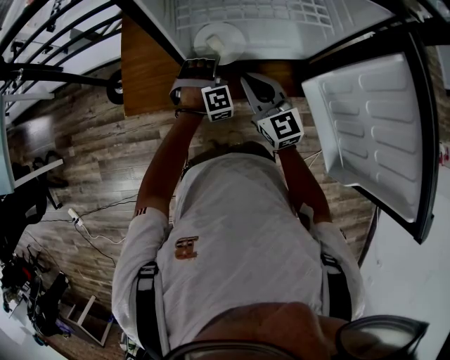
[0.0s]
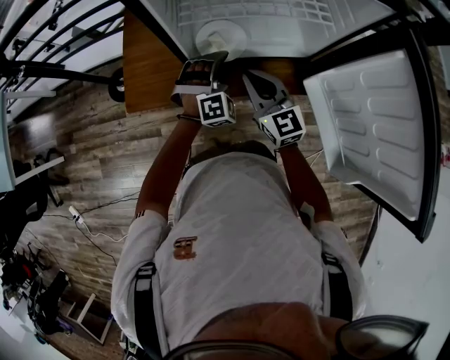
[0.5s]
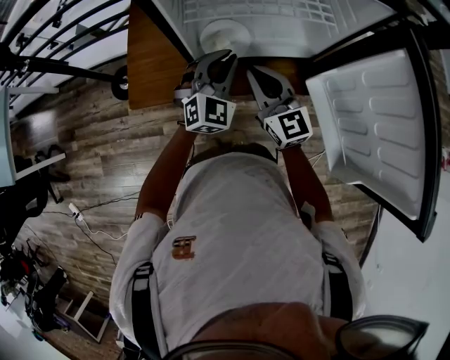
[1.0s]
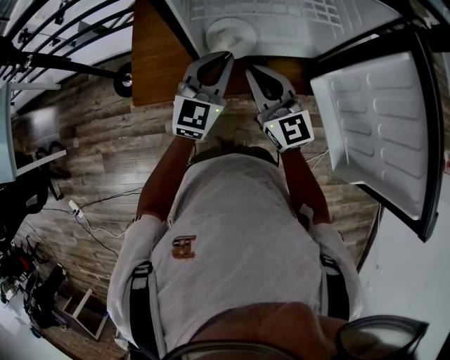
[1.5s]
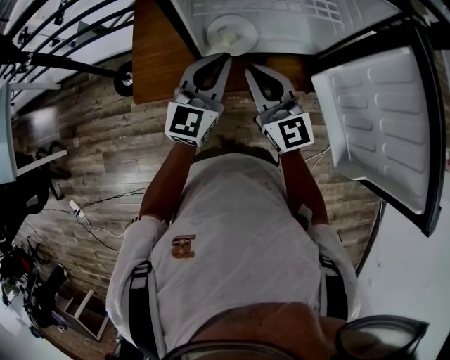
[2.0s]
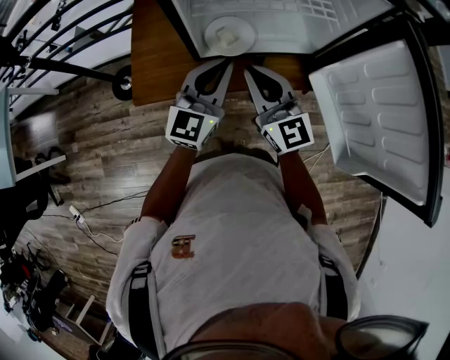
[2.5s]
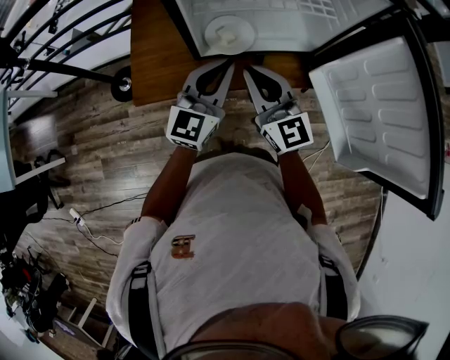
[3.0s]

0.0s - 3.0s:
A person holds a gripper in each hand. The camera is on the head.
0.0s - 1.5s: The right gripper goes about 5 cm upward.

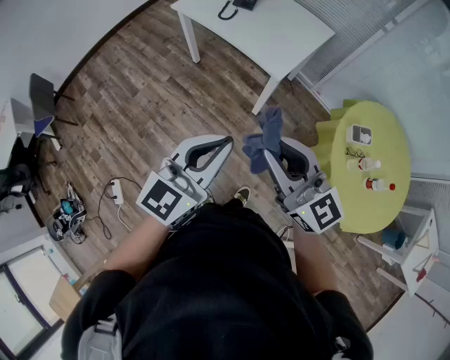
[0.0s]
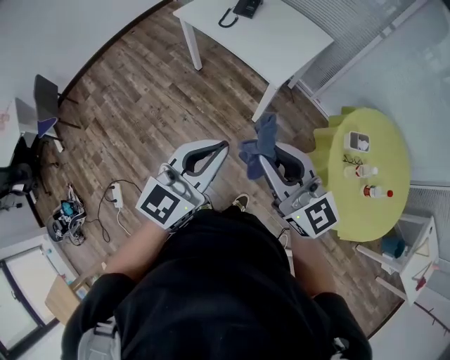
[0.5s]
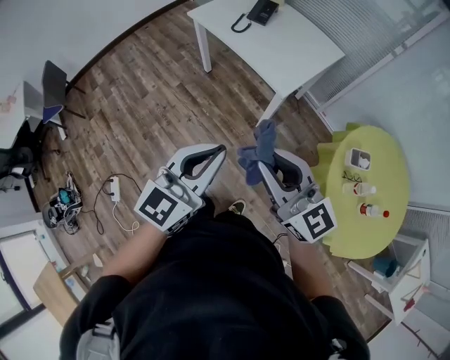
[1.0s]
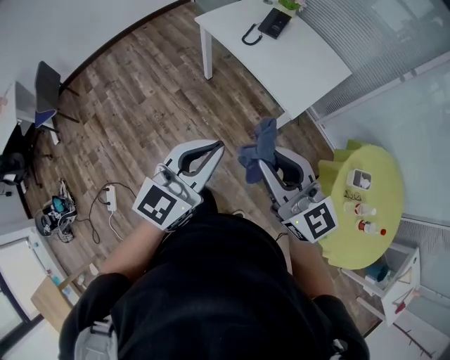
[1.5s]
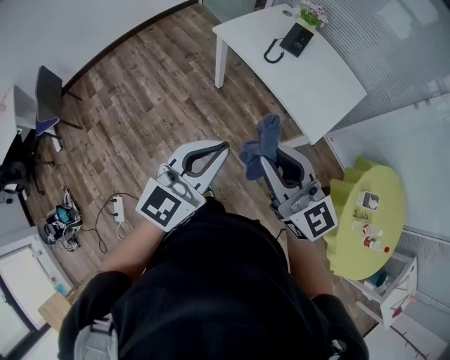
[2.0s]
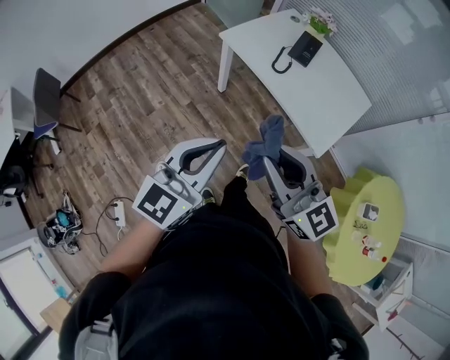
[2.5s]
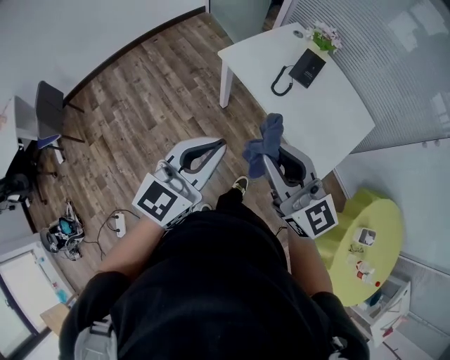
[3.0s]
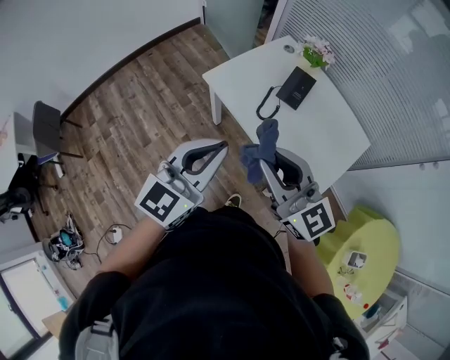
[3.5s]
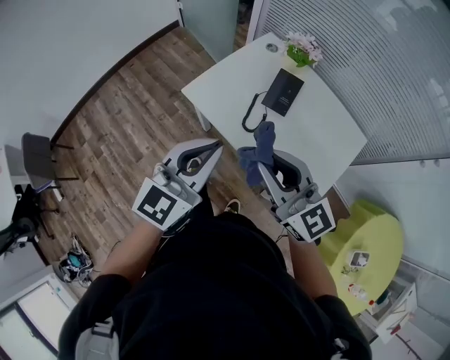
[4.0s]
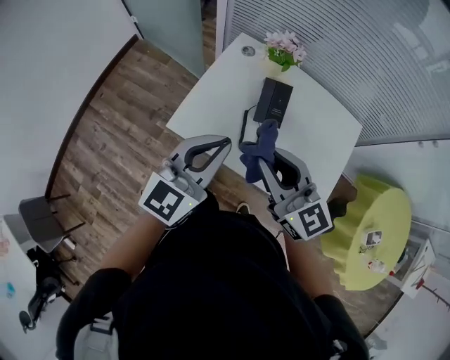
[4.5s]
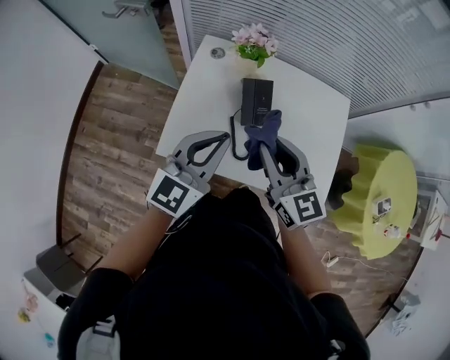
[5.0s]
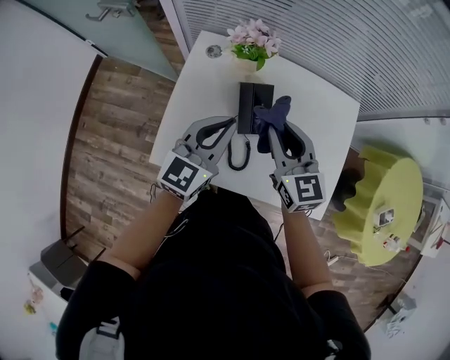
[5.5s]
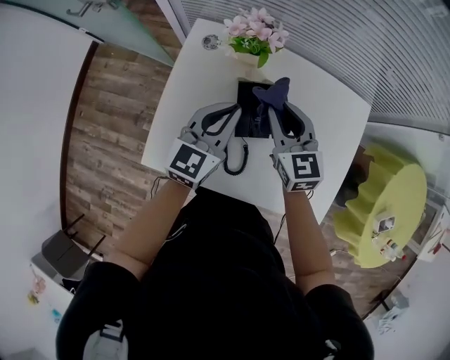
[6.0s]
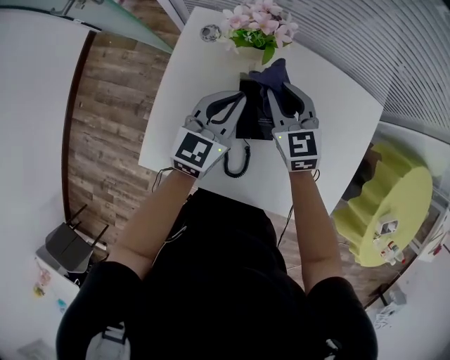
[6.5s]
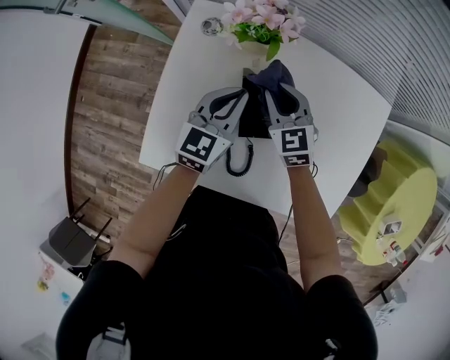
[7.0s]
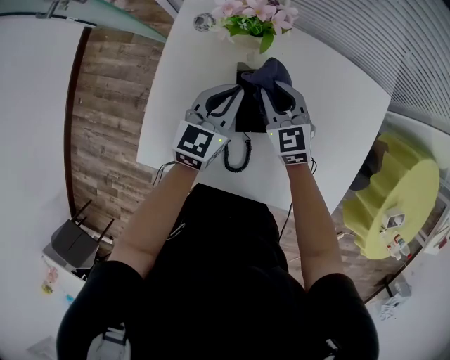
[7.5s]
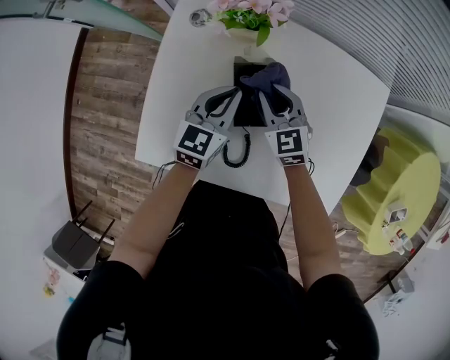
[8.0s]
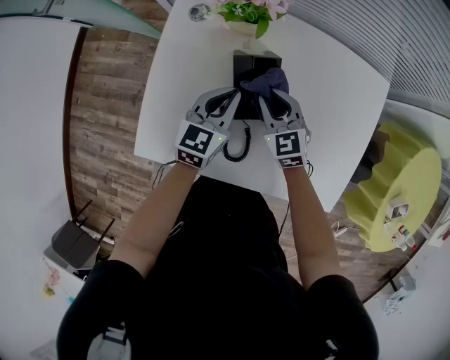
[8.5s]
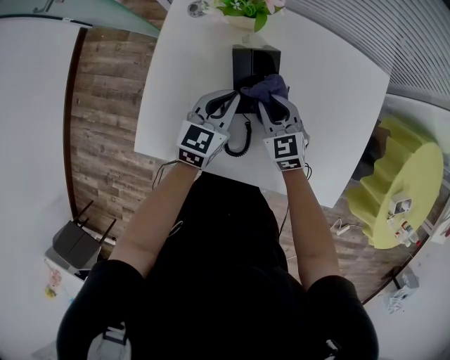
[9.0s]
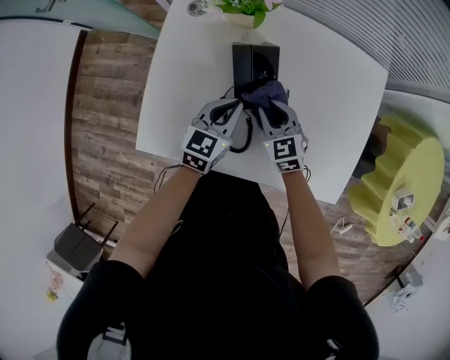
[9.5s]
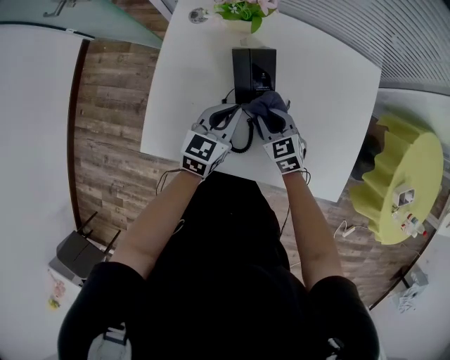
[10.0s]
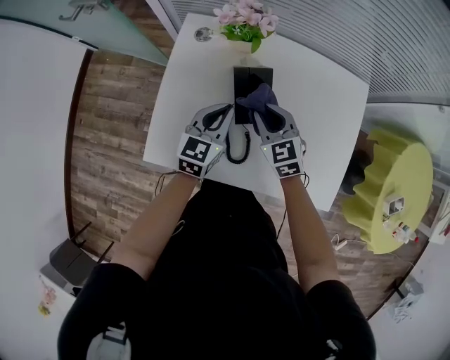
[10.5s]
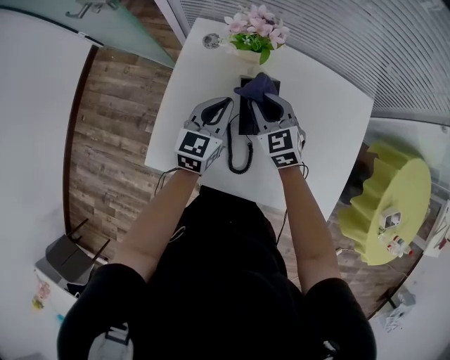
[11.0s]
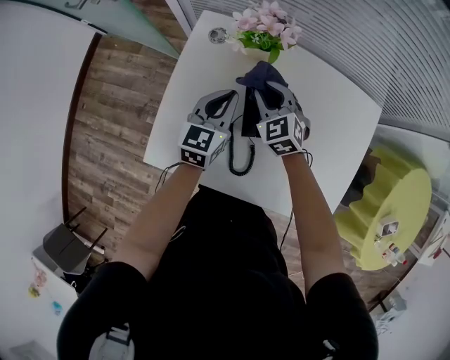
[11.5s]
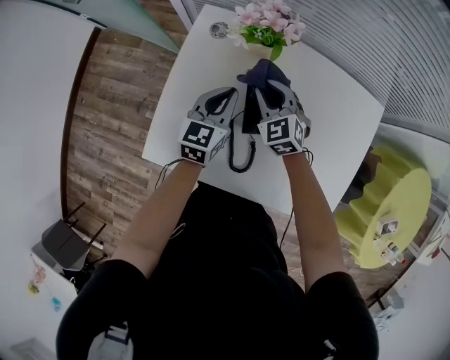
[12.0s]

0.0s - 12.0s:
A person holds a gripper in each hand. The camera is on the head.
0.0s - 2.0s: Both grippers move forward and to the left, about 25 cm.
2.0s - 4.0s: Both grippers move forward, approximately 40 cm.
4.0s - 6.0s: The right gripper ends up some 40 cm from where it was, and swivels approximately 50 degrees. The left gripper changes place by approximately 40 cm, and turns by roughly 30 degrees.
6.0s - 8.0s: Both grippers move downward, some 15 cm.
8.0s - 10.0s: The left gripper shifts roughly 10 cm backward. The right gripper moves backward and downward, some 15 cm.
10.0s - 12.0s: The right gripper shifts roughly 15 cm forward, upward and to the left, and turns by roughly 20 degrees. Meanwhile the left gripper goes some 10 cm forward and to the left.

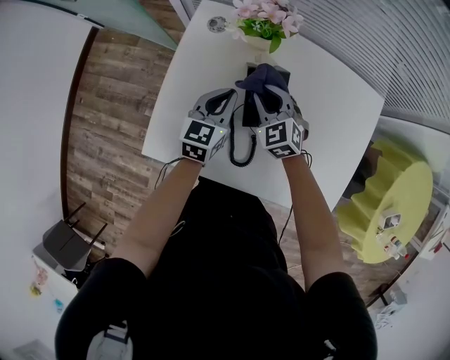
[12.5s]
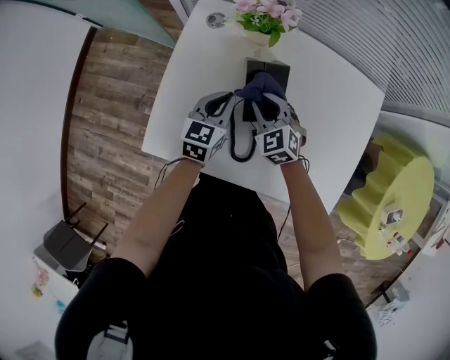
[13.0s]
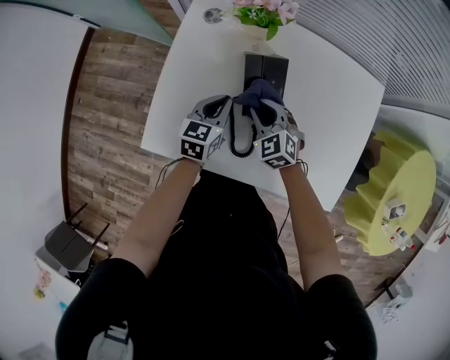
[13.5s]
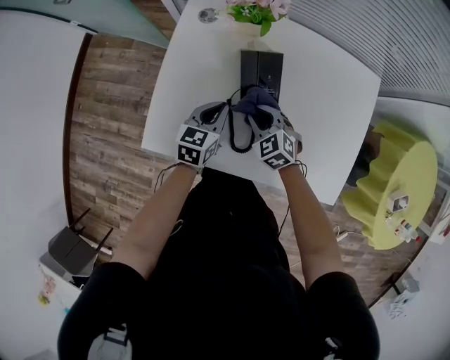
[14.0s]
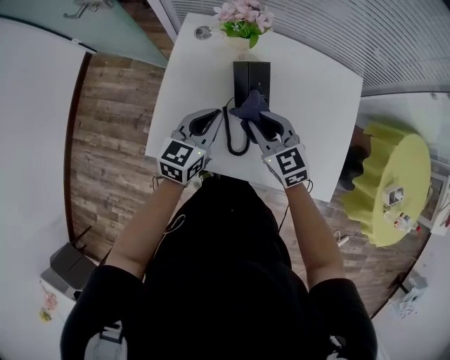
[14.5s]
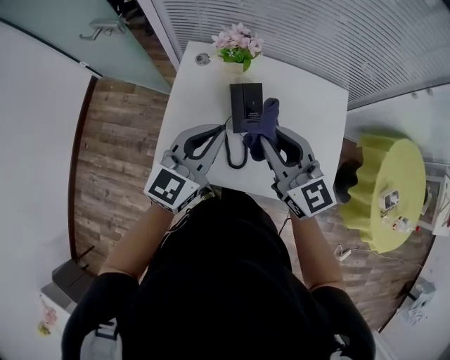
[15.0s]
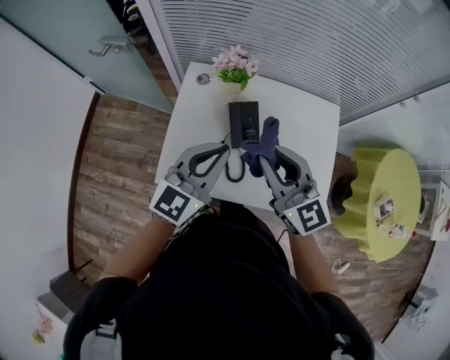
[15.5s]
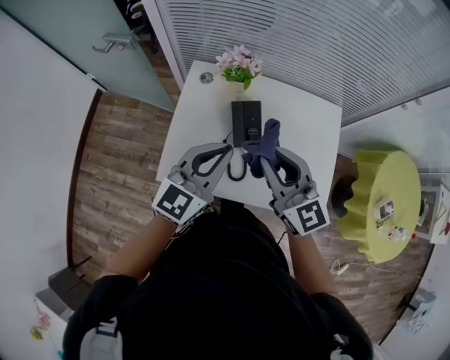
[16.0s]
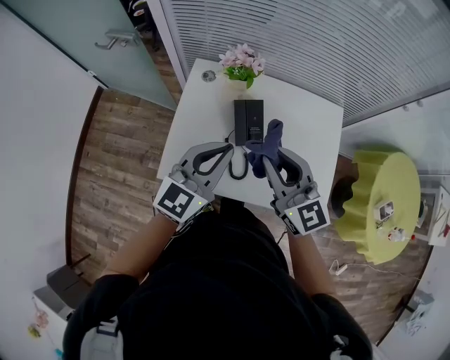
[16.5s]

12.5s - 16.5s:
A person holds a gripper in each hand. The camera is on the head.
12.5s - 14.5s: The grippers both shift backward and upward by about 15 cm. The right gripper changes its angle by about 20 degrees.
14.5s - 16.5s: Both grippers move upward, approximately 20 cm. The left gripper turns by some 20 degrees. The right gripper turns by approximately 20 degrees.

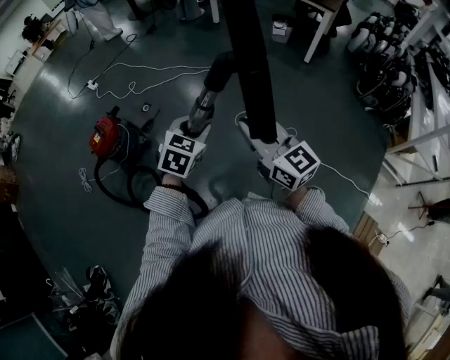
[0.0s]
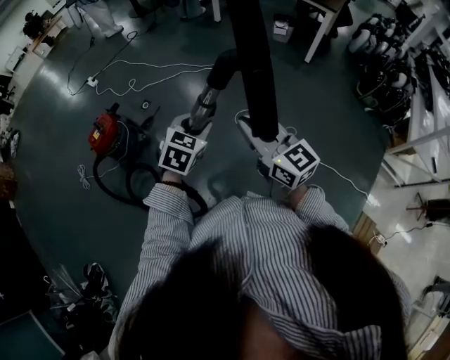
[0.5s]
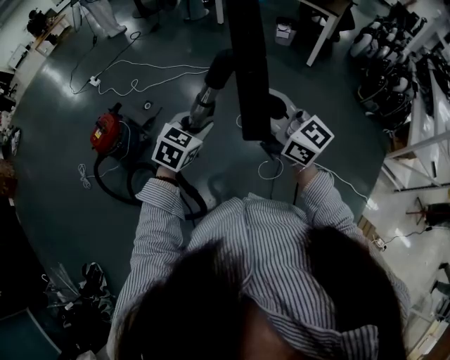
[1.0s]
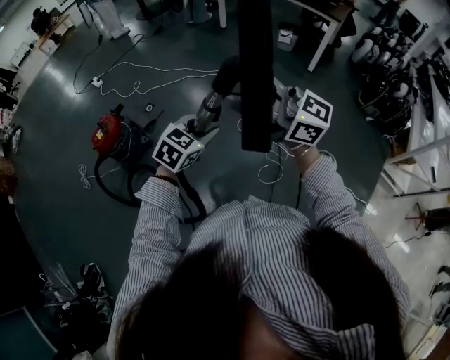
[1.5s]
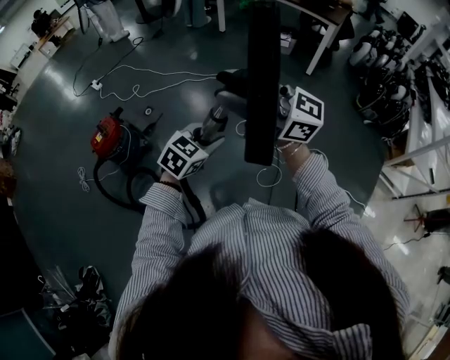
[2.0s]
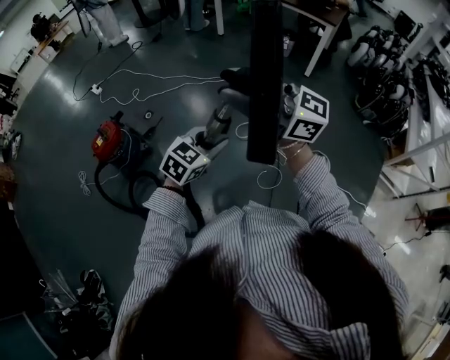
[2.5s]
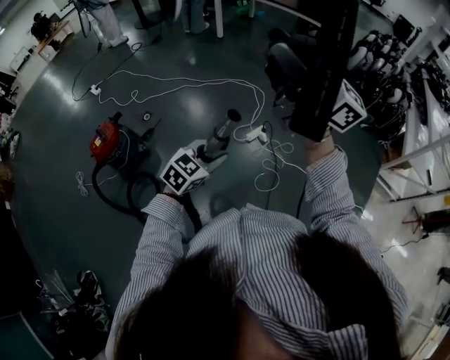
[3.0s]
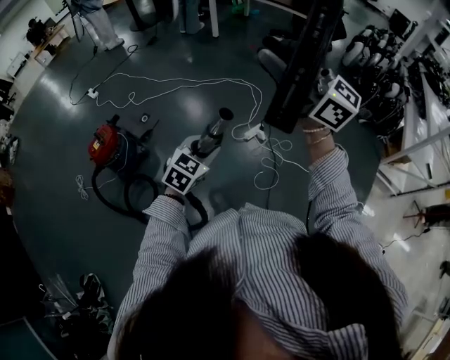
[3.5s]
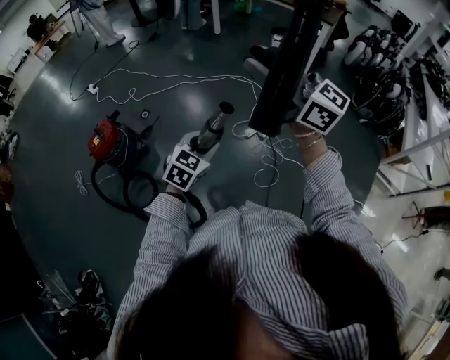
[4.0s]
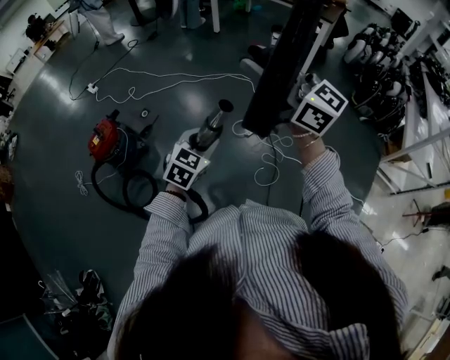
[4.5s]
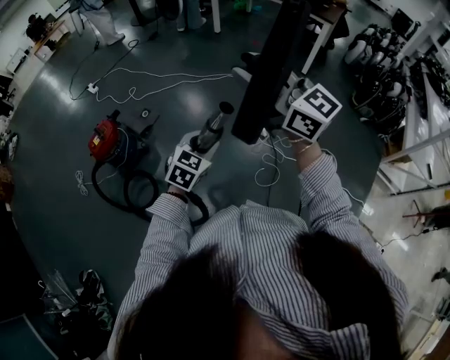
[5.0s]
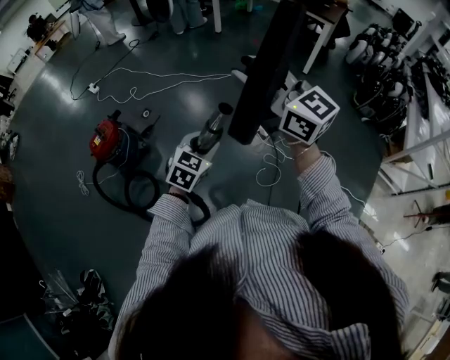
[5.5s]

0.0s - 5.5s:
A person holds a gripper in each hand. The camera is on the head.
0.0s - 2.0s: The right gripper travels upward by some 15 cm, changes its angle by about 40 degrees, and opens up.
2.0s - 3.5s: The right gripper shifts some 10 cm to the right and upward.
3.5s - 5.5s: The right gripper goes roughly 10 cm downward and to the left.

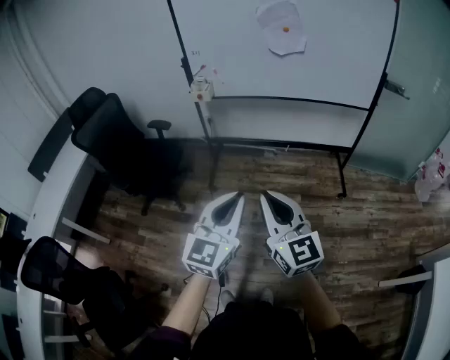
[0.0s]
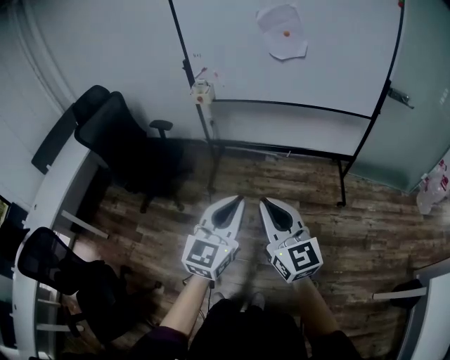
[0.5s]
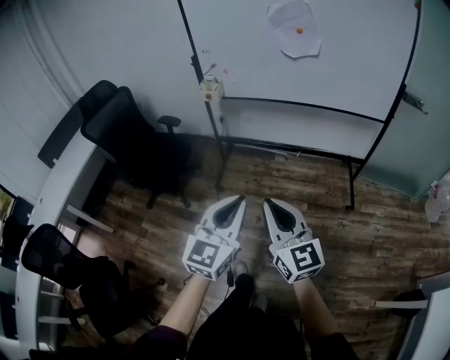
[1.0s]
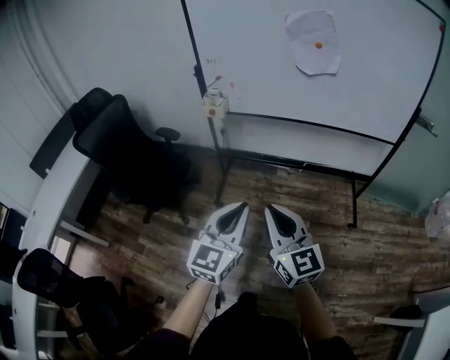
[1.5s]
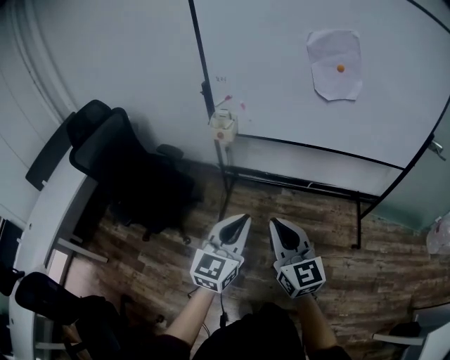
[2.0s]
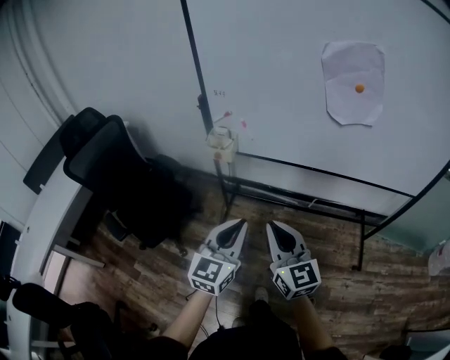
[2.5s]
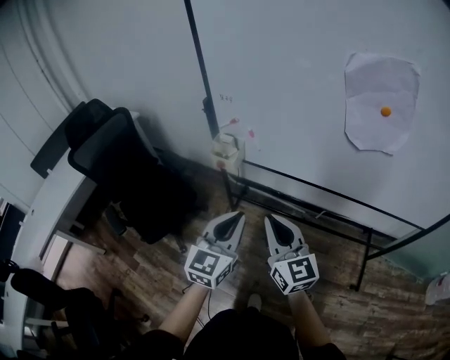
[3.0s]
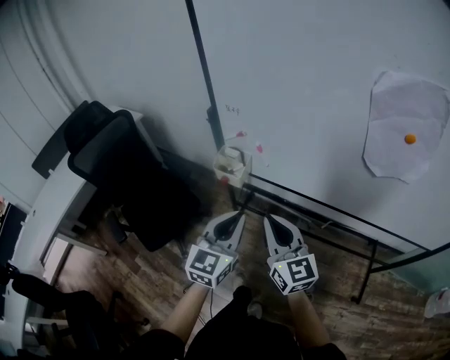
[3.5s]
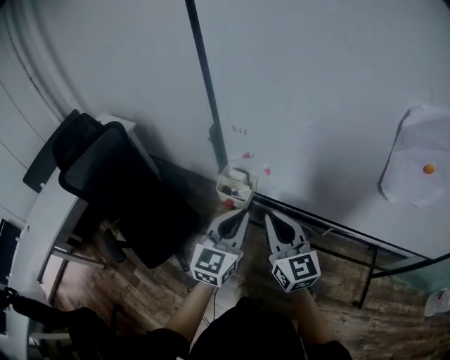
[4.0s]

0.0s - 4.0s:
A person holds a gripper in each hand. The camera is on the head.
0.0s - 2.0s: The two grippers go approximately 30 cm forward.
2.0s - 4.0s: The two grippers travel together, forward, approximately 40 cm.
